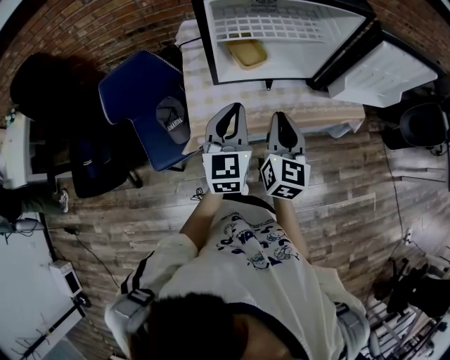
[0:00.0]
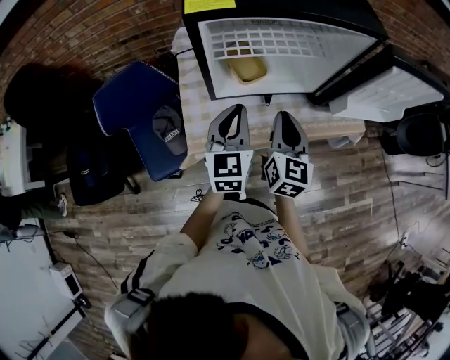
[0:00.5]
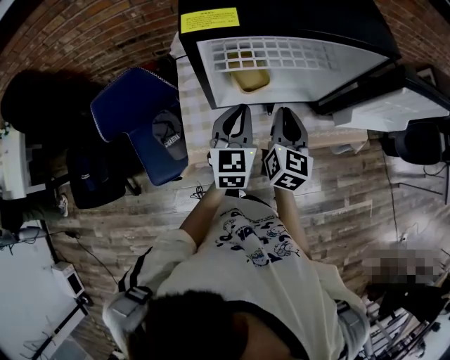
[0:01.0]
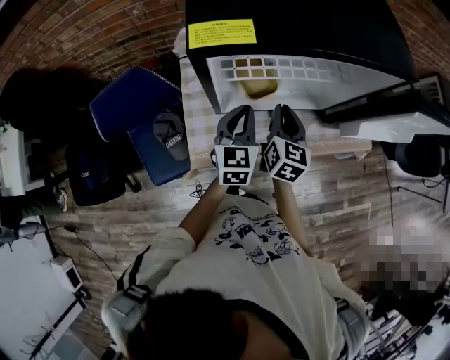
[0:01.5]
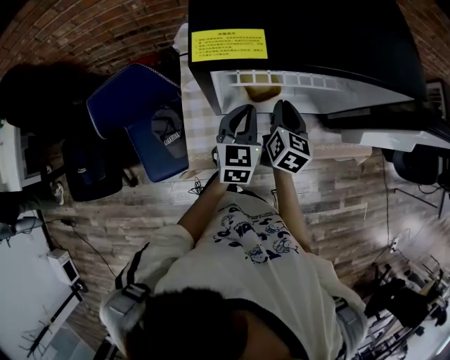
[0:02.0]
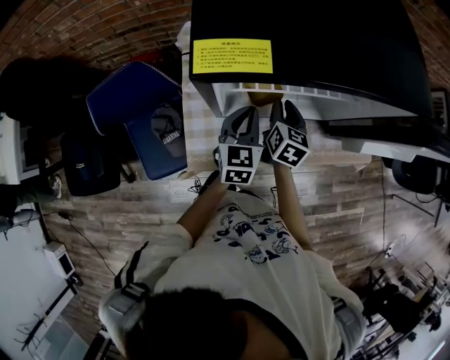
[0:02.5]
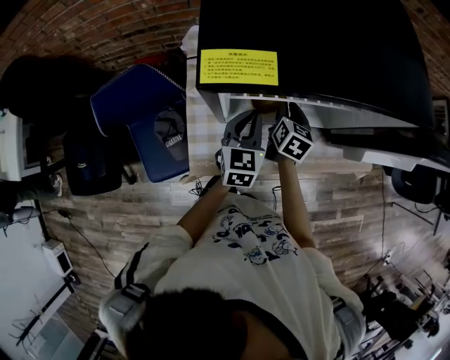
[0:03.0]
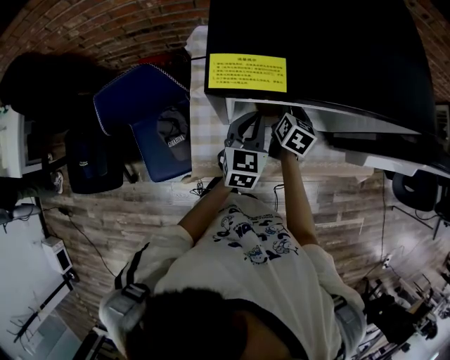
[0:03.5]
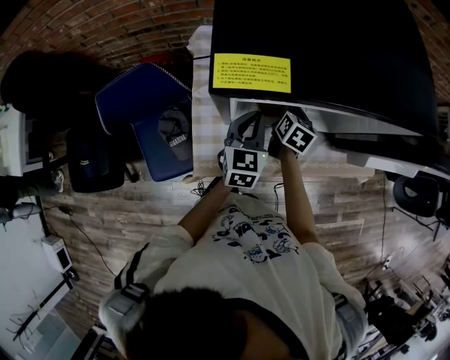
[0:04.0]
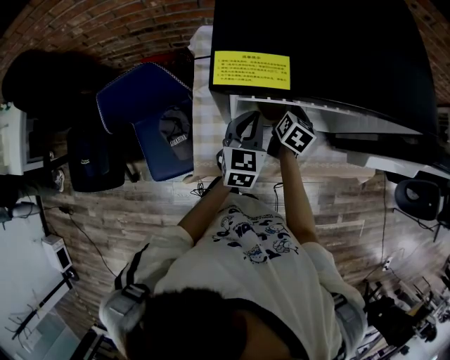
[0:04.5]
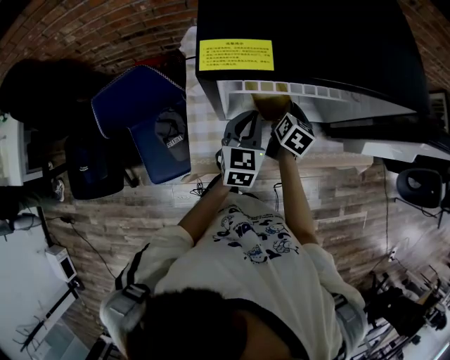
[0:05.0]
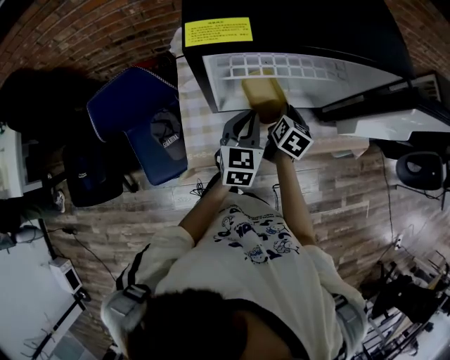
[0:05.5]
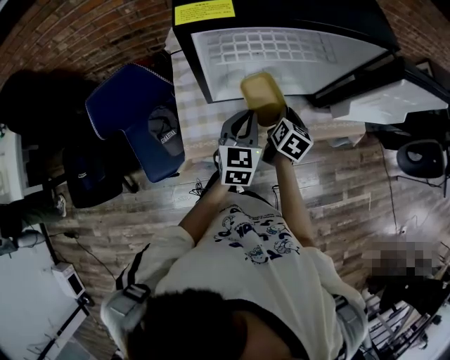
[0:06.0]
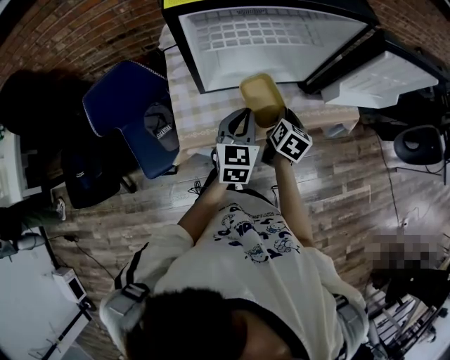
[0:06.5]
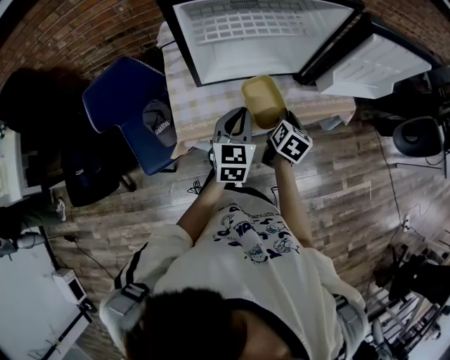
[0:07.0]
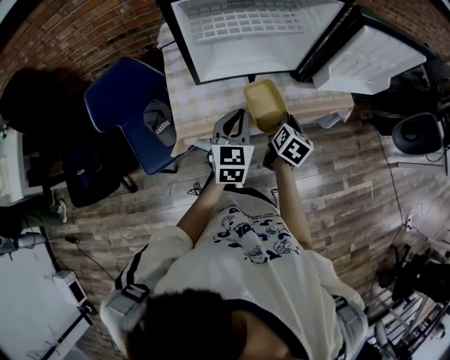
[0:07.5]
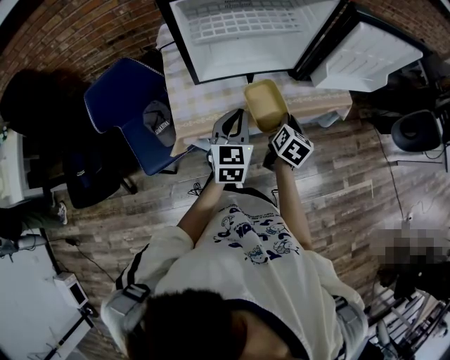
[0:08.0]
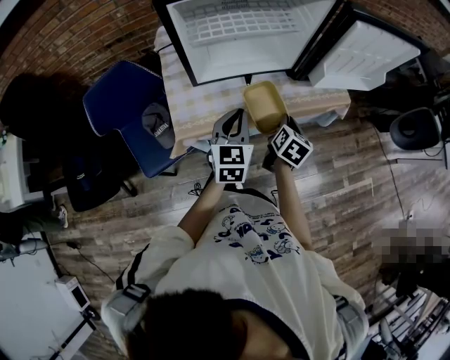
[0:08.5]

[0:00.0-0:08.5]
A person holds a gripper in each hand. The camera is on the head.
0:00.0 to 0:02.0: The grippers both shift forward and downward by some 25 cm.
0:02.0 to 0:04.0: The right gripper heads downward and forward, covering approximately 10 cm.
0:04.0 to 0:06.5: Both grippers move backward and to the right, roughly 20 cm.
0:06.5 to 0:08.5: The right gripper shifts approximately 10 cm backward and to the right, while the left gripper moves backward, about 5 cm.

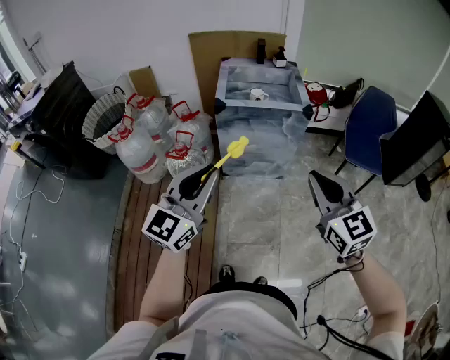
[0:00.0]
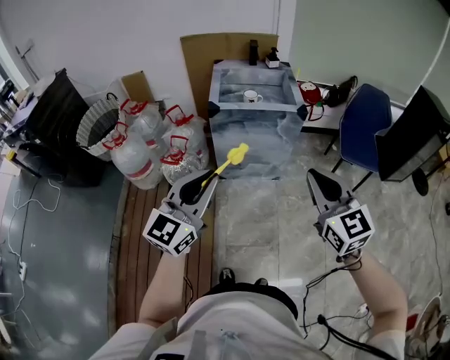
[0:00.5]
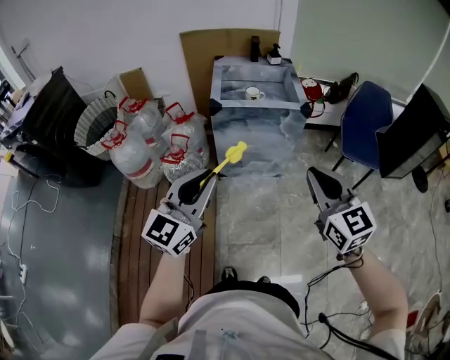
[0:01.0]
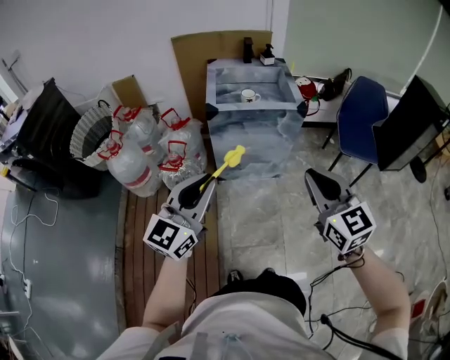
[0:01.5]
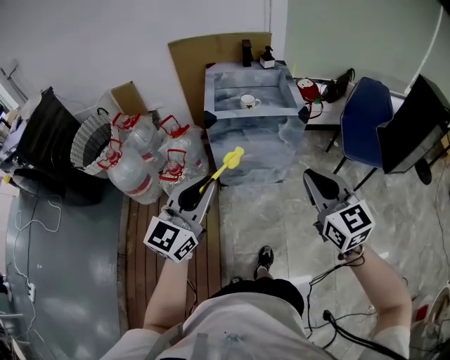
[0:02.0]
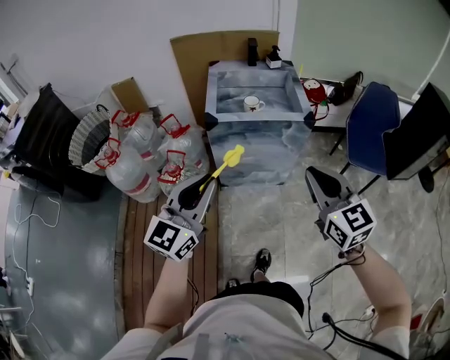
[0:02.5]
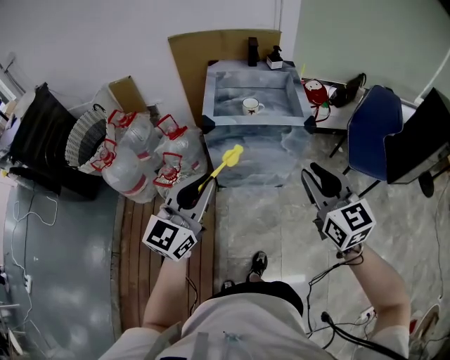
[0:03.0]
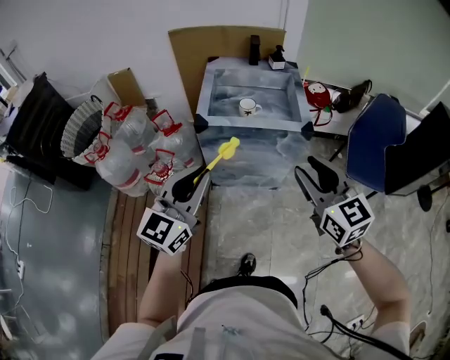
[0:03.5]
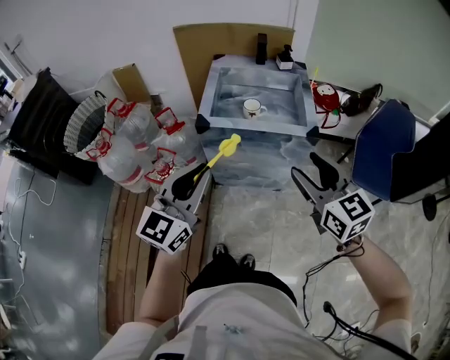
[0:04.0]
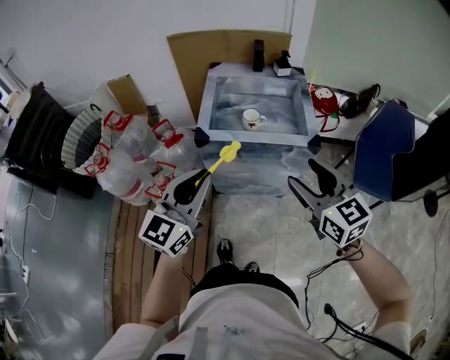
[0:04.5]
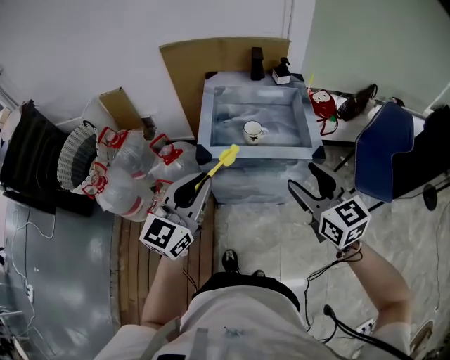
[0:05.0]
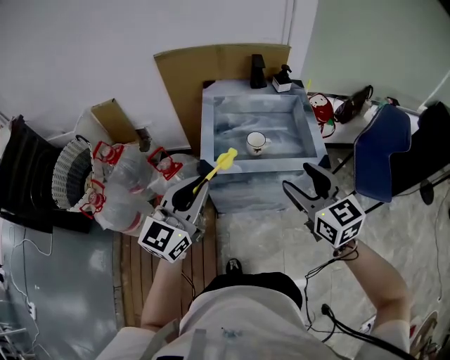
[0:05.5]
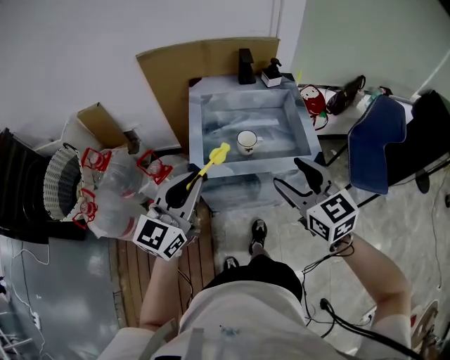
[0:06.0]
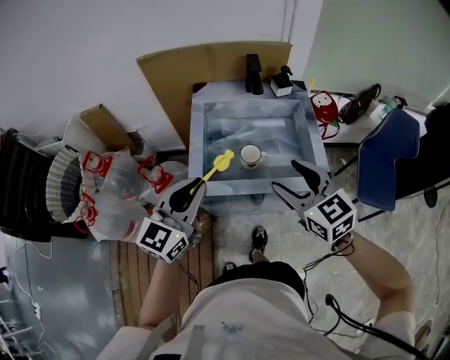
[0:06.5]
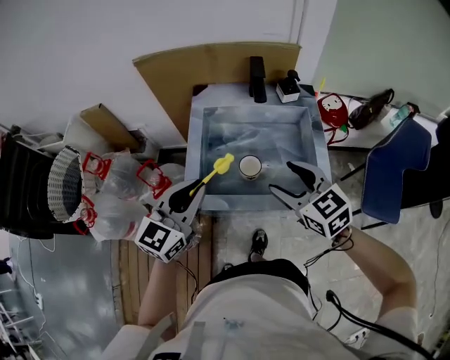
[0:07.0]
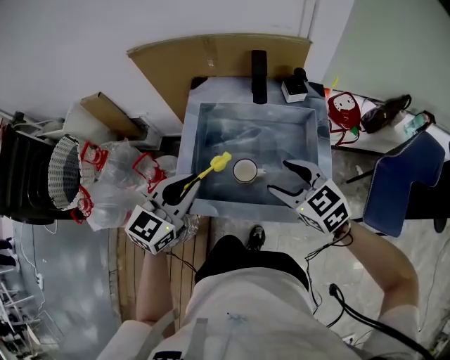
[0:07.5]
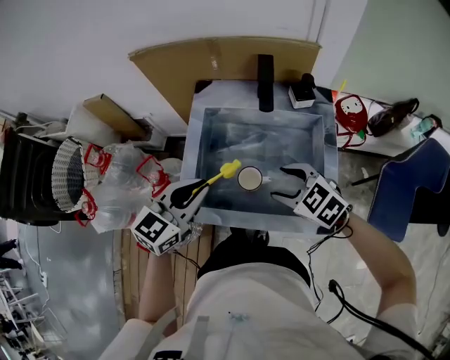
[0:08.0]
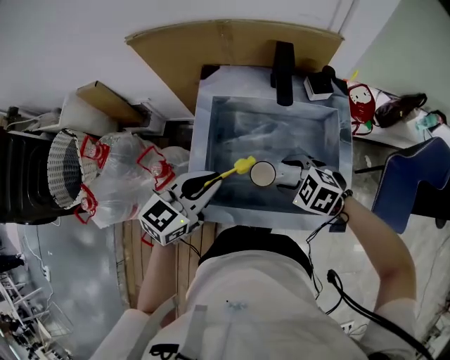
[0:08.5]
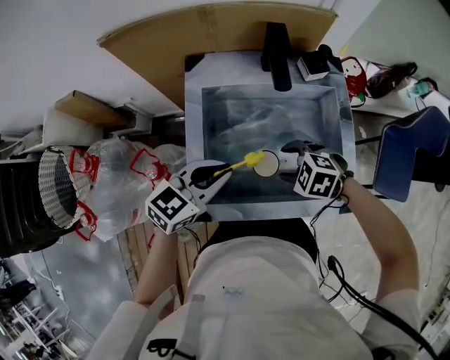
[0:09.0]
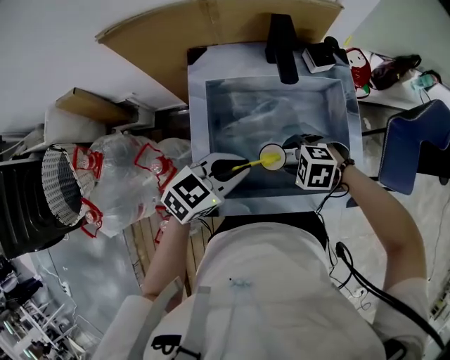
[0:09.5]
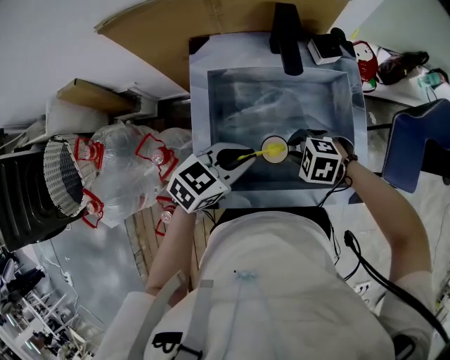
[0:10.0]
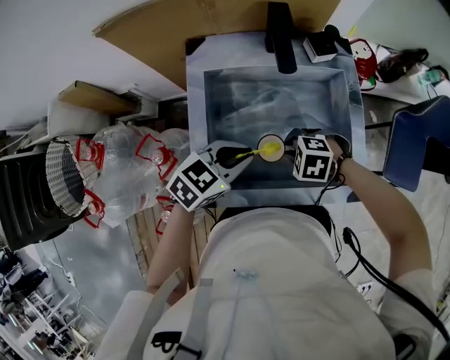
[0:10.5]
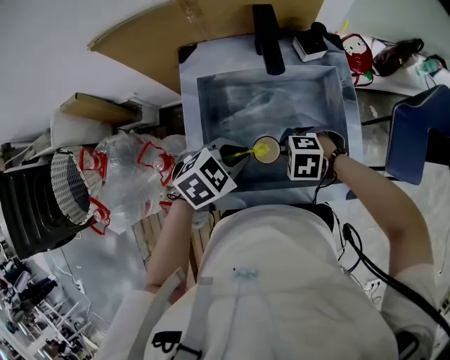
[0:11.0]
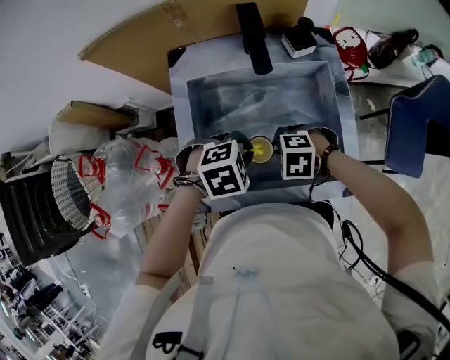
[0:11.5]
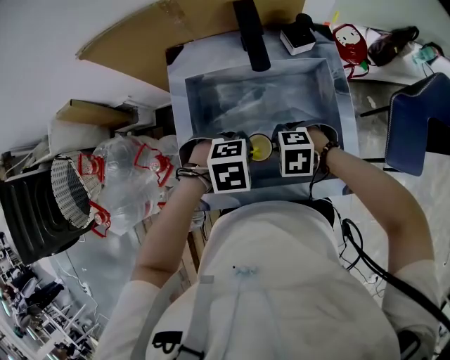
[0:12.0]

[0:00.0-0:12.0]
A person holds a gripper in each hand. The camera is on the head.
0:00.0 to 0:02.0: The two grippers go approximately 10 cm forward.
0:02.0 to 0:04.0: Both grippers move forward, about 20 cm. The right gripper opens its fingers.
0:04.0 to 0:06.0: The left gripper heads forward, covering approximately 20 cm. Meanwhile the right gripper goes some 20 cm forward and to the left.
0:06.0 to 0:08.0: The right gripper goes approximately 25 cm forward and downward, and rotates approximately 40 degrees, while the left gripper goes approximately 20 cm forward, to the right and downward.
0:08.0 to 0:10.0: The grippers both shift downward by approximately 10 cm. The right gripper turns by approximately 30 degrees, and closes; the left gripper changes its angle by approximately 30 degrees.
0:10.0 to 0:12.0: The left gripper heads downward, covering approximately 5 cm, and tips its fingers downward by some 40 degrees.

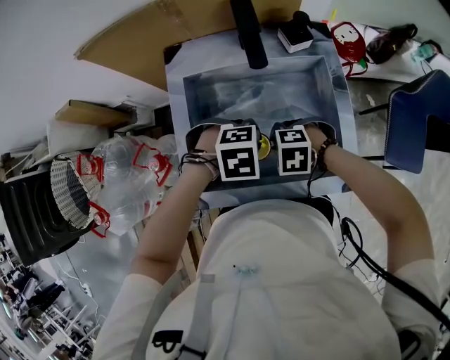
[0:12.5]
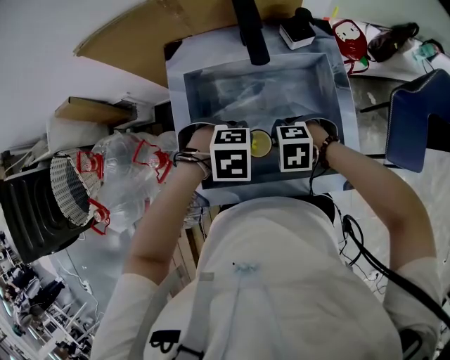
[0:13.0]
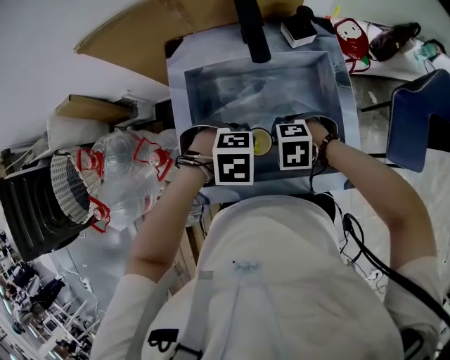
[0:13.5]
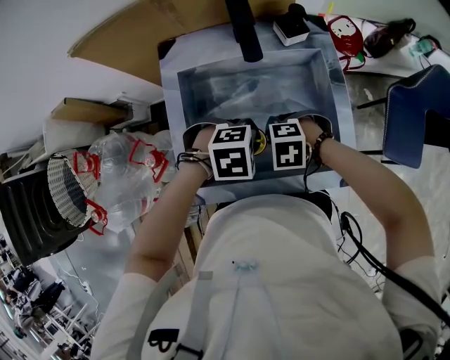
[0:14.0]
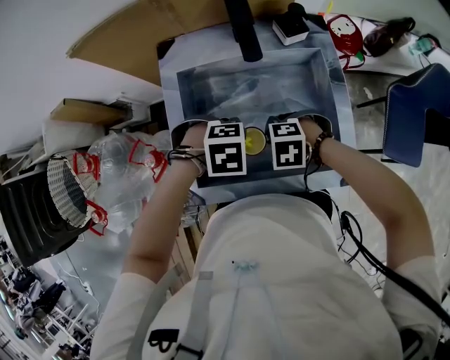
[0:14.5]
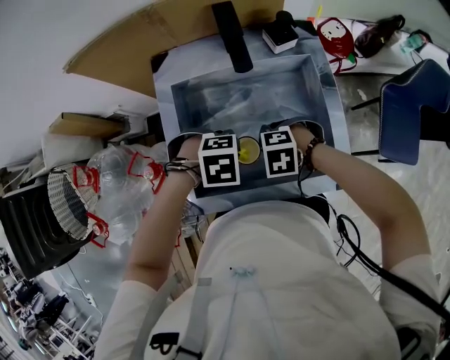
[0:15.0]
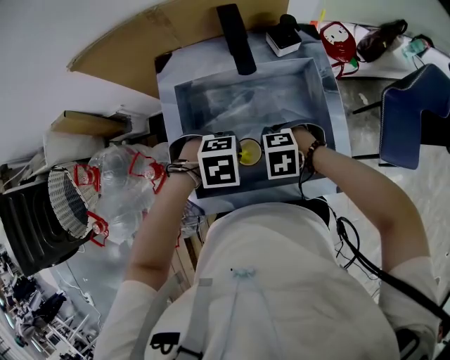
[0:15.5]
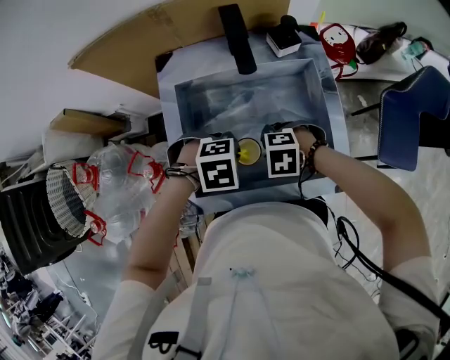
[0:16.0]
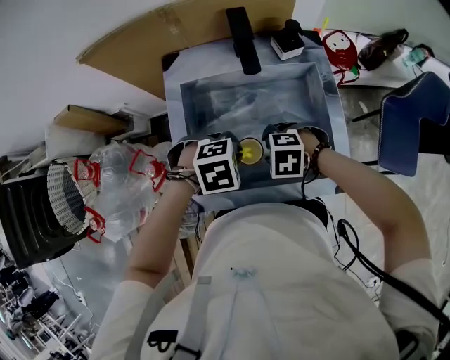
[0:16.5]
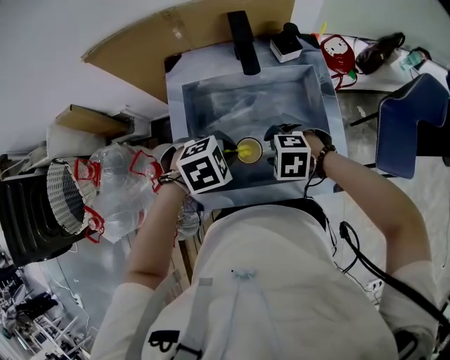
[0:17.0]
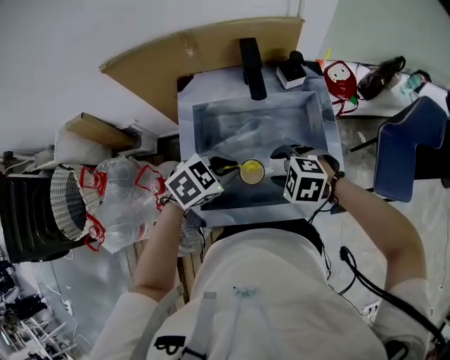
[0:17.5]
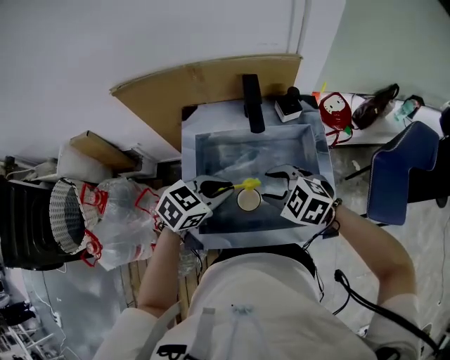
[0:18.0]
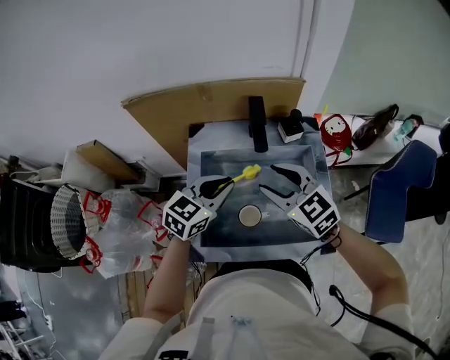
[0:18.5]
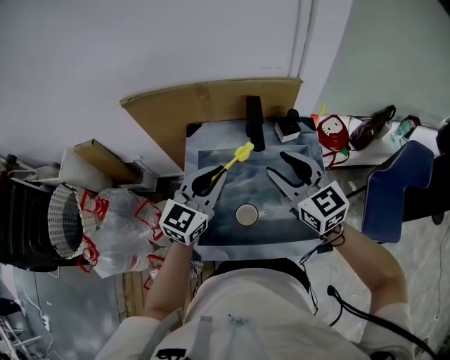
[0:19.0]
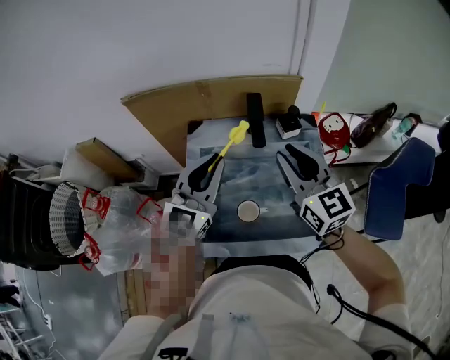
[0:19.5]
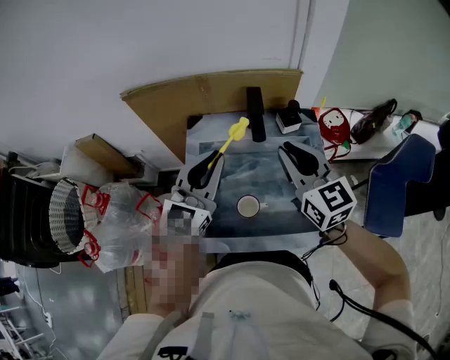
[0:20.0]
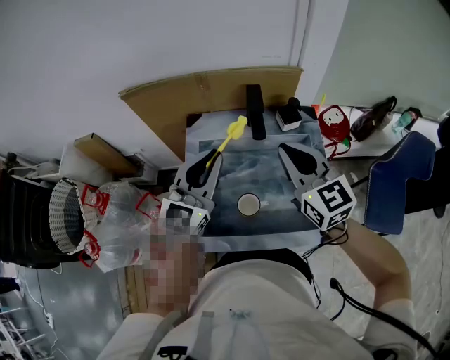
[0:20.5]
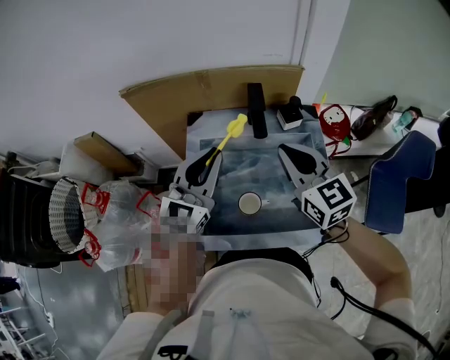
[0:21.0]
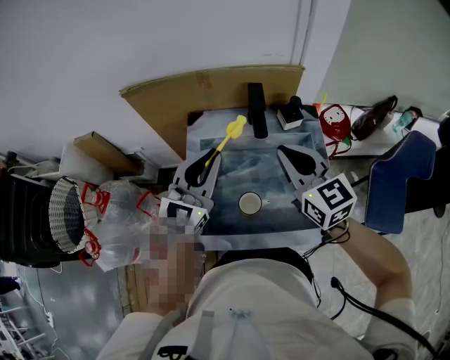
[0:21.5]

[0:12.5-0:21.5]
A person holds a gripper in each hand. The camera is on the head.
0:12.5 to 0:14.5: The grippers move only a little.
0:14.5 to 0:17.0: The left gripper changes its angle by about 20 degrees. The right gripper opens up.
0:17.0 to 0:19.5: The two grippers go some 25 cm upward. The left gripper angles its fingers upward, by roughly 70 degrees; the right gripper angles its fingers upward, by some 70 degrees, and closes its fingers.
0:19.5 to 0:21.5: There are only small adjustments of the grippers.
